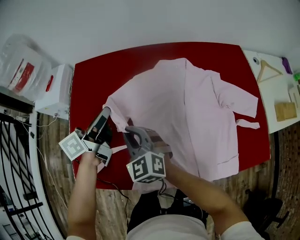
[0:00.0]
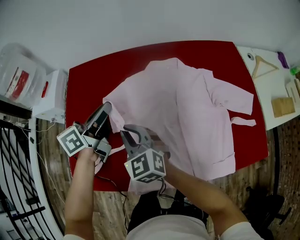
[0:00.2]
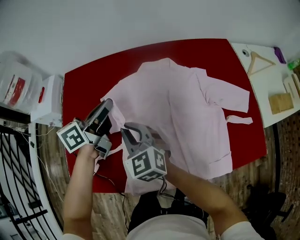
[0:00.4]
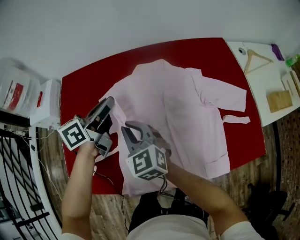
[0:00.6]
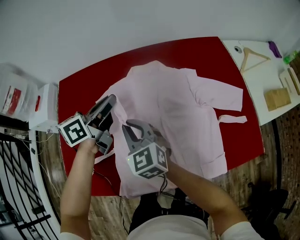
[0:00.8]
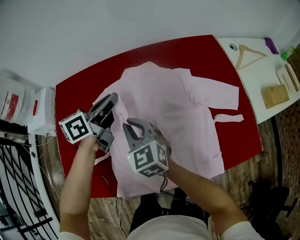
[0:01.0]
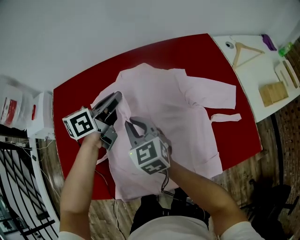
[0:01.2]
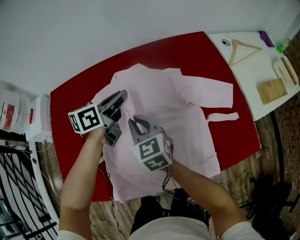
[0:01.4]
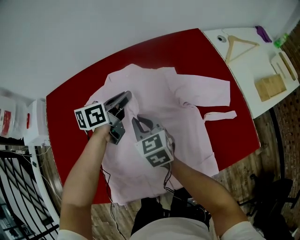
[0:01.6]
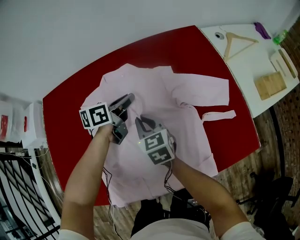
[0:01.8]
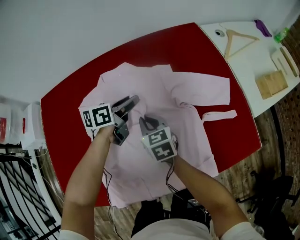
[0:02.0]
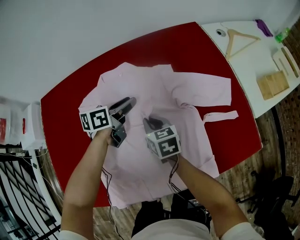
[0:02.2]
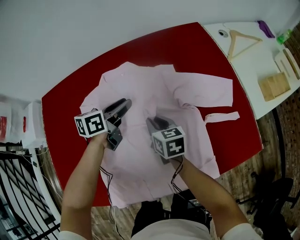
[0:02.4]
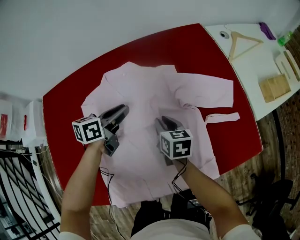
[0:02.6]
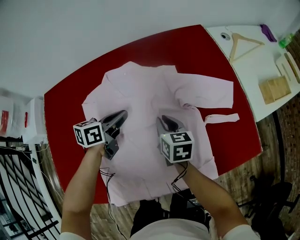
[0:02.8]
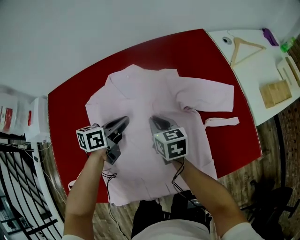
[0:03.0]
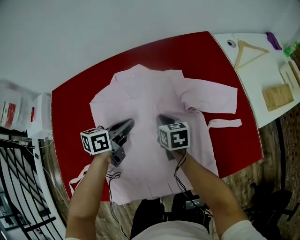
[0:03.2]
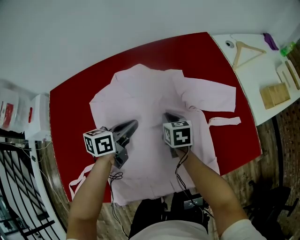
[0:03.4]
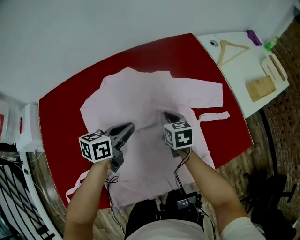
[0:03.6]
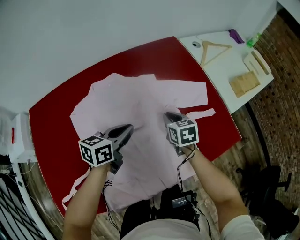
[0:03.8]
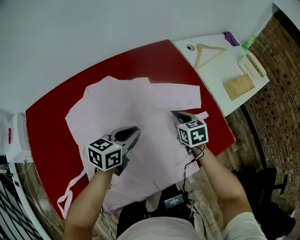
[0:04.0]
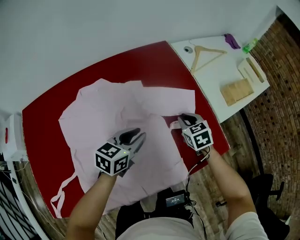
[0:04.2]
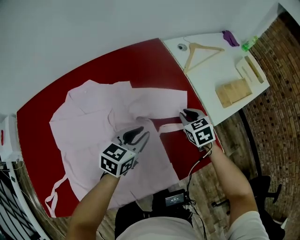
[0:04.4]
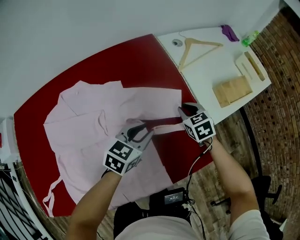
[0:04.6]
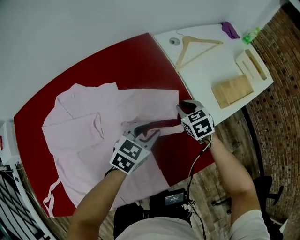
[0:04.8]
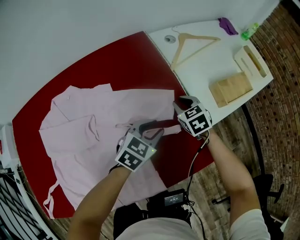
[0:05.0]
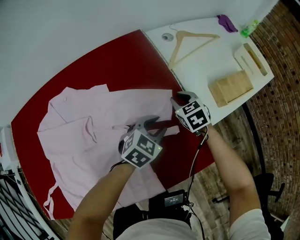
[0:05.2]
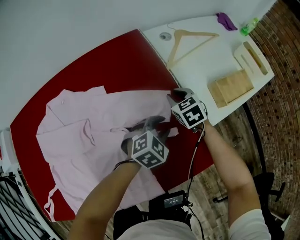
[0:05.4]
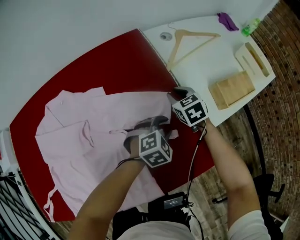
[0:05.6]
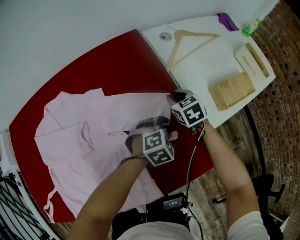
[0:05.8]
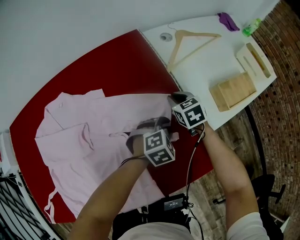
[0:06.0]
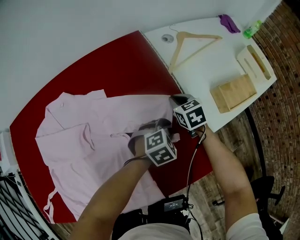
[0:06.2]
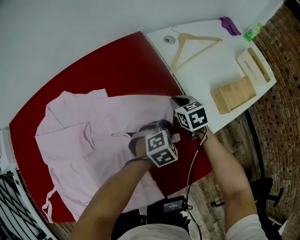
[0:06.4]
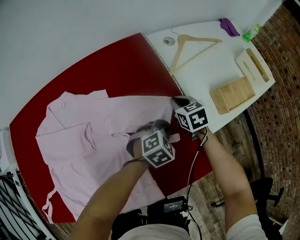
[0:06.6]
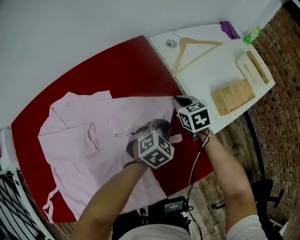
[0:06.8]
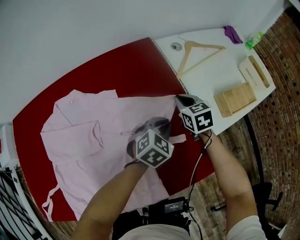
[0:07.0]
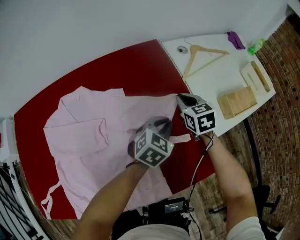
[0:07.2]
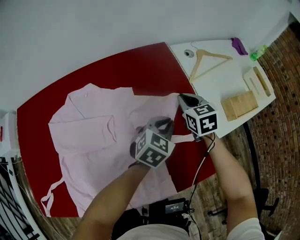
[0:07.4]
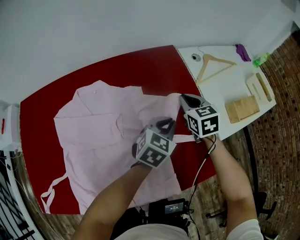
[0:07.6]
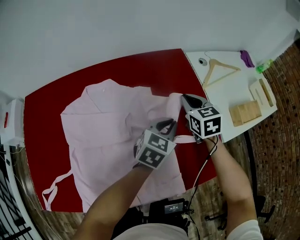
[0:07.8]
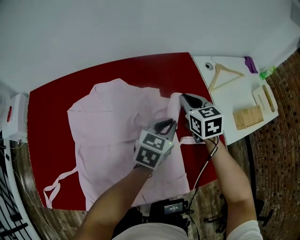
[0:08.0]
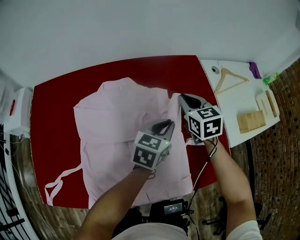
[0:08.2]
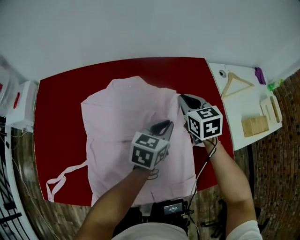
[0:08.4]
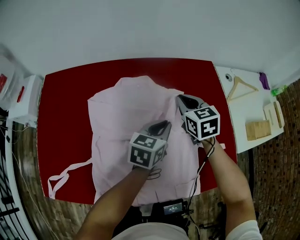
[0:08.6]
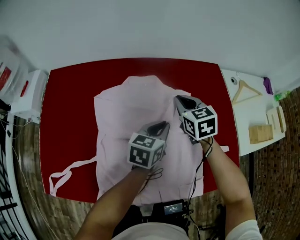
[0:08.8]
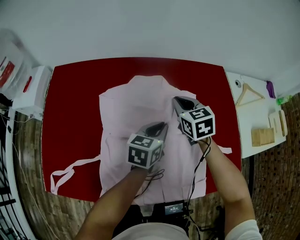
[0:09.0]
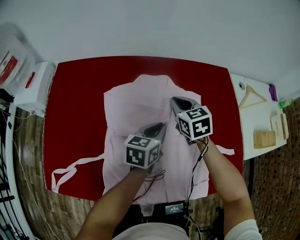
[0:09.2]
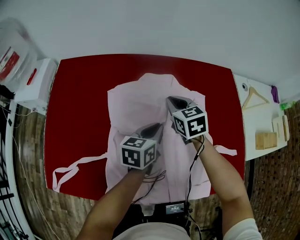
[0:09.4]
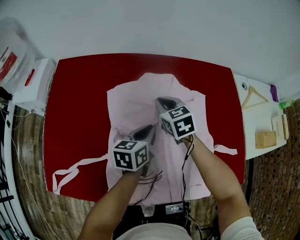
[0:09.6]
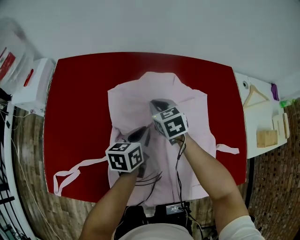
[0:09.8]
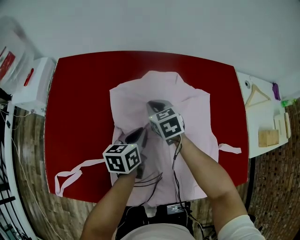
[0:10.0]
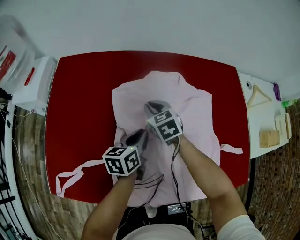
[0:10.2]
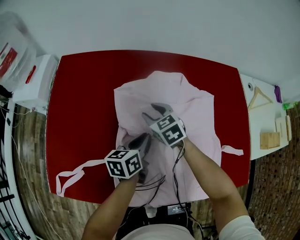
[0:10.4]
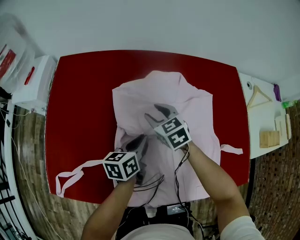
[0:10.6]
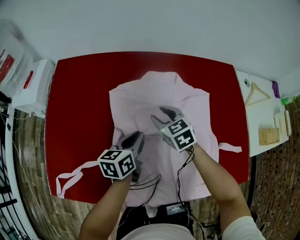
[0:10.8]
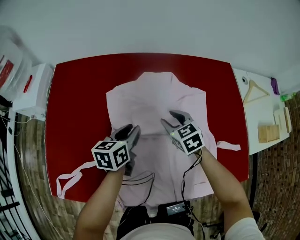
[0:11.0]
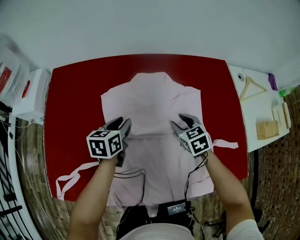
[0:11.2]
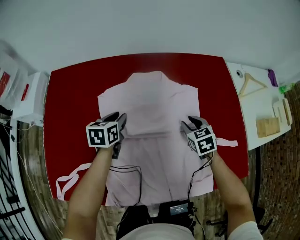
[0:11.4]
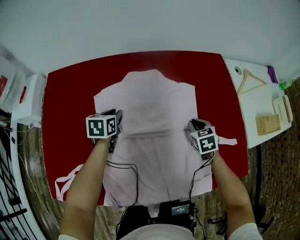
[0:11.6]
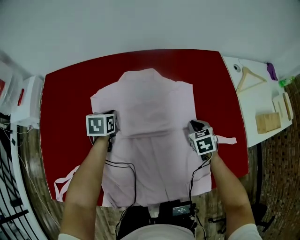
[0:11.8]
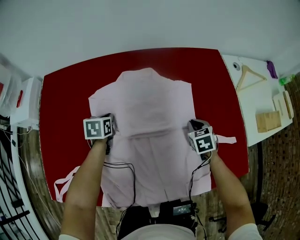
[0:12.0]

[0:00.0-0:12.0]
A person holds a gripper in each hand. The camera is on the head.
0:00.0 to 0:01.6: The grippers both shift to the right and forward by approximately 30 cm. The left gripper turns by about 30 degrees. Meanwhile the right gripper changes its angle by approximately 30 degrees.
0:01.6 to 0:03.0: The left gripper heads backward and downward, covering approximately 10 cm, and opens, then closes again. Meanwhile the right gripper shifts approximately 10 cm downward and to the right.
0:03.0 to 0:04.4: The two grippers go roughly 25 cm to the right. The right gripper turns by some 30 degrees. Meanwhile the left gripper turns by about 30 degrees.
0:04.4 to 0:06.0: The right gripper moves forward, roughly 10 cm. Meanwhile the left gripper goes approximately 25 cm to the right, forward and downward, and rotates around the line of its fingers by about 40 degrees, clockwise from behind.
0:06.0 to 0:07.6: The right gripper goes about 15 cm upward and to the left. The left gripper goes about 20 cm to the left and upward, turns by about 40 degrees, and closes.
0:07.6 to 0:09.0: The grippers both shift to the left by about 25 cm. The left gripper changes its angle by some 40 degrees.
0:09.0 to 0:10.4: Both grippers move to the left and downward, about 20 cm. The right gripper opens its fingers, while the left gripper swivels some 20 degrees.
0:10.4 to 0:12.0: The right gripper moves to the right, some 30 cm, rotates about 30 degrees, and closes up; the left gripper is displaced forward, downward and to the left by approximately 15 cm, and turns by some 40 degrees.

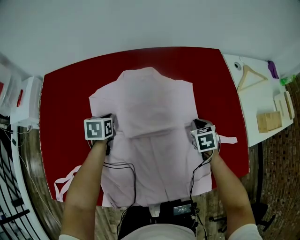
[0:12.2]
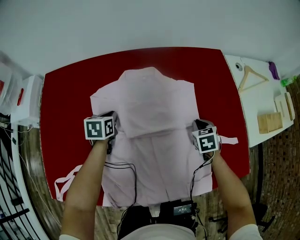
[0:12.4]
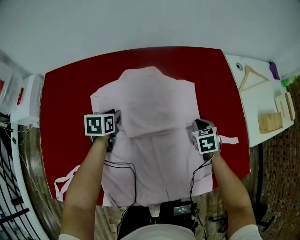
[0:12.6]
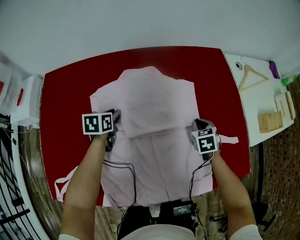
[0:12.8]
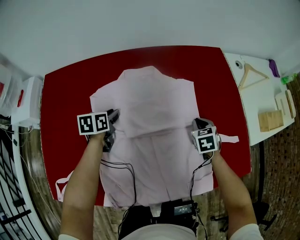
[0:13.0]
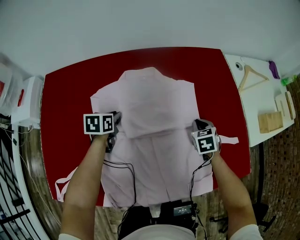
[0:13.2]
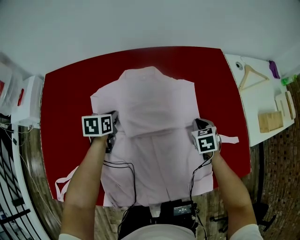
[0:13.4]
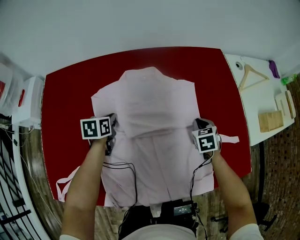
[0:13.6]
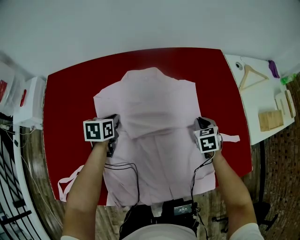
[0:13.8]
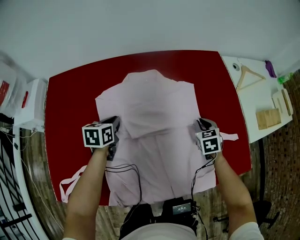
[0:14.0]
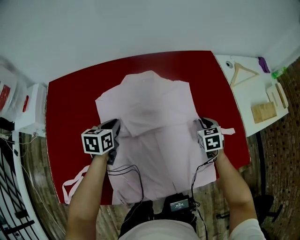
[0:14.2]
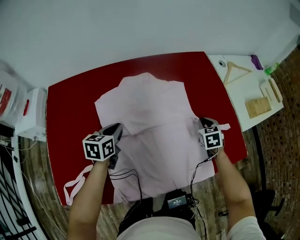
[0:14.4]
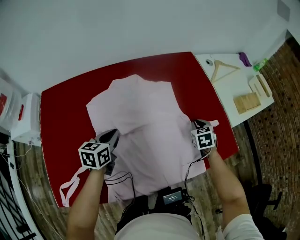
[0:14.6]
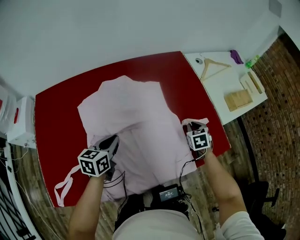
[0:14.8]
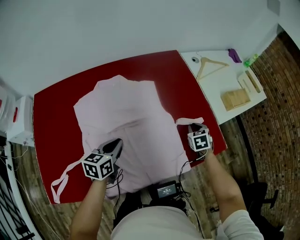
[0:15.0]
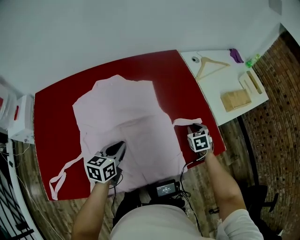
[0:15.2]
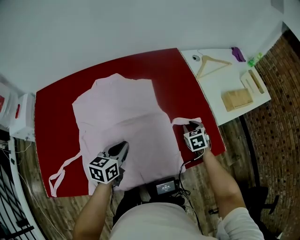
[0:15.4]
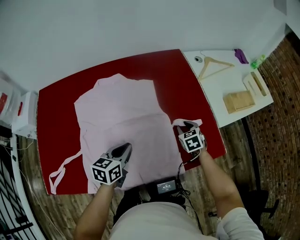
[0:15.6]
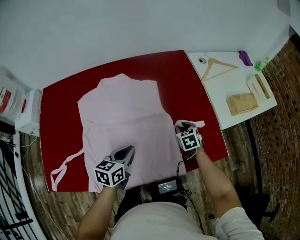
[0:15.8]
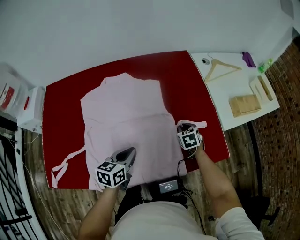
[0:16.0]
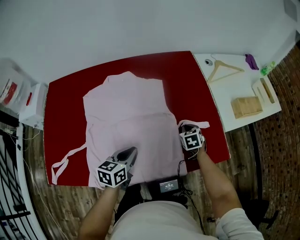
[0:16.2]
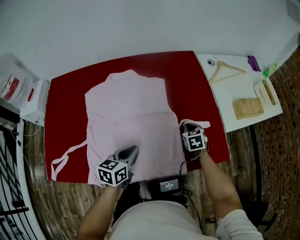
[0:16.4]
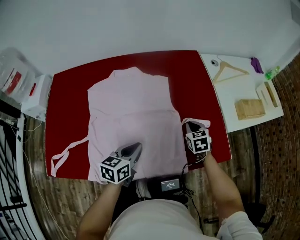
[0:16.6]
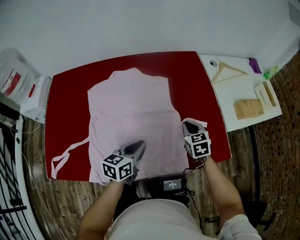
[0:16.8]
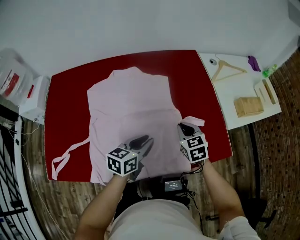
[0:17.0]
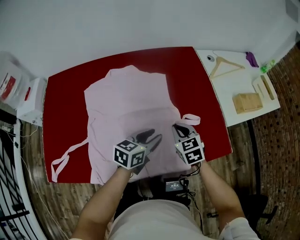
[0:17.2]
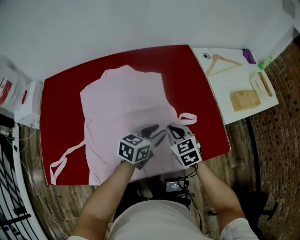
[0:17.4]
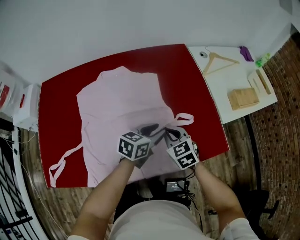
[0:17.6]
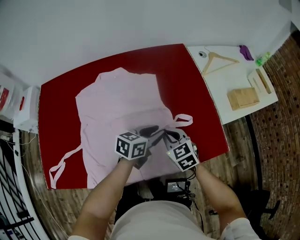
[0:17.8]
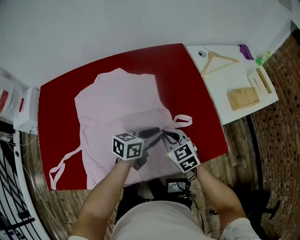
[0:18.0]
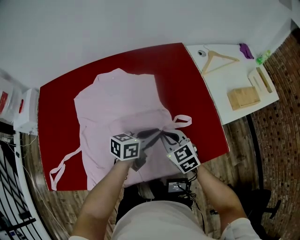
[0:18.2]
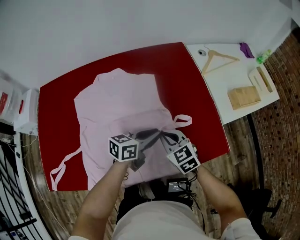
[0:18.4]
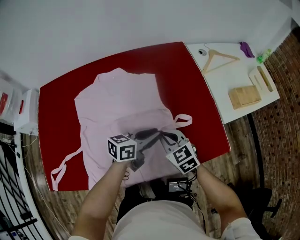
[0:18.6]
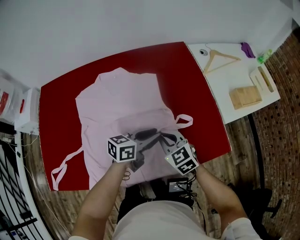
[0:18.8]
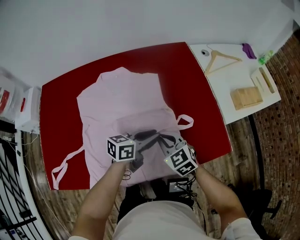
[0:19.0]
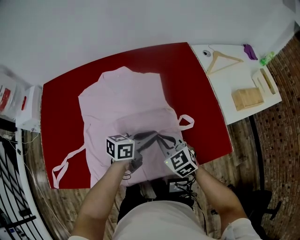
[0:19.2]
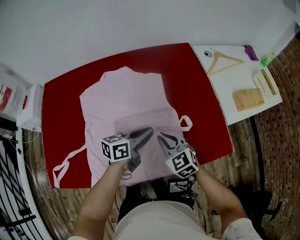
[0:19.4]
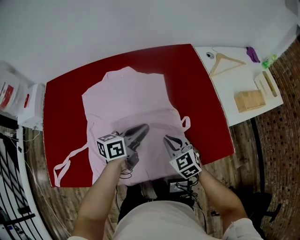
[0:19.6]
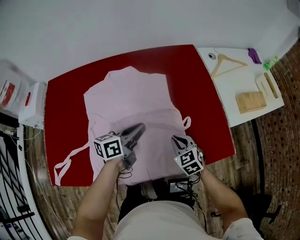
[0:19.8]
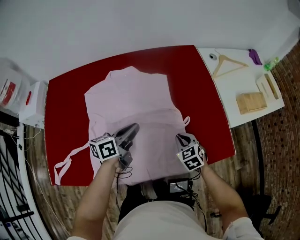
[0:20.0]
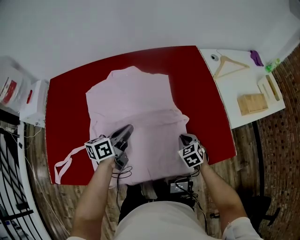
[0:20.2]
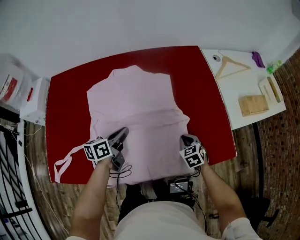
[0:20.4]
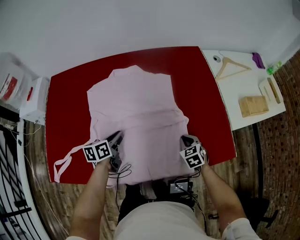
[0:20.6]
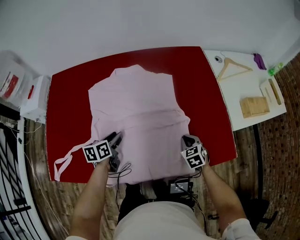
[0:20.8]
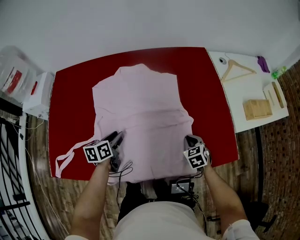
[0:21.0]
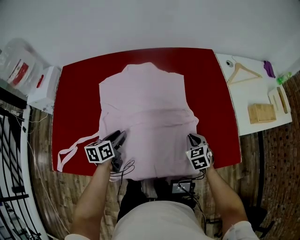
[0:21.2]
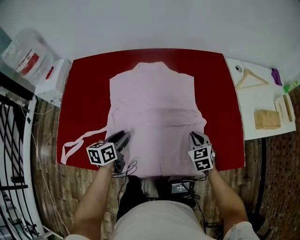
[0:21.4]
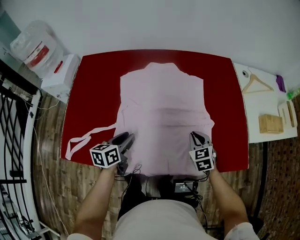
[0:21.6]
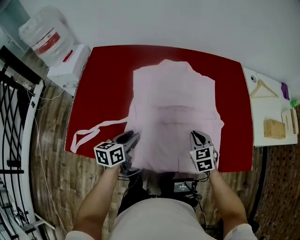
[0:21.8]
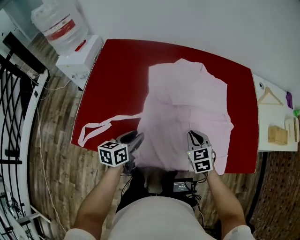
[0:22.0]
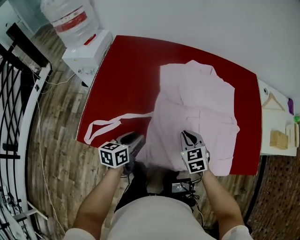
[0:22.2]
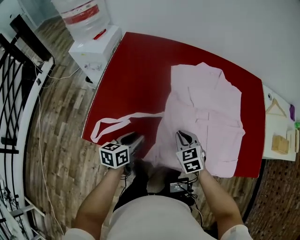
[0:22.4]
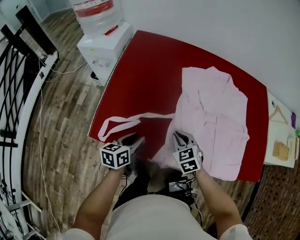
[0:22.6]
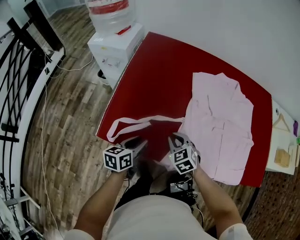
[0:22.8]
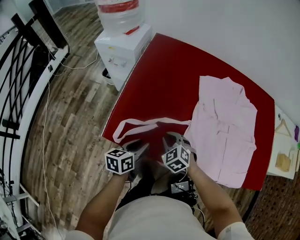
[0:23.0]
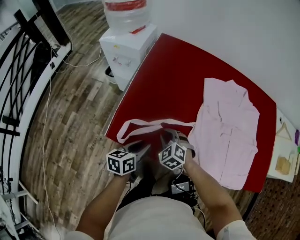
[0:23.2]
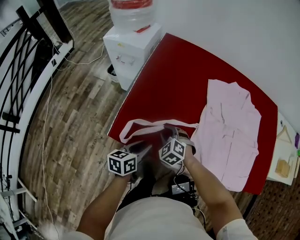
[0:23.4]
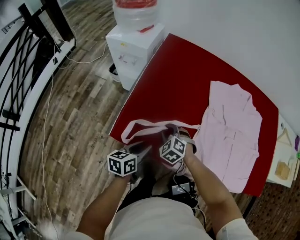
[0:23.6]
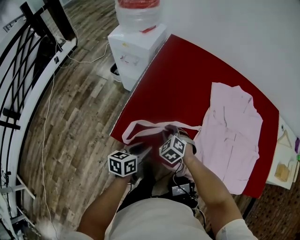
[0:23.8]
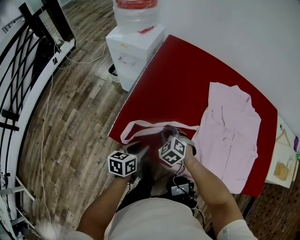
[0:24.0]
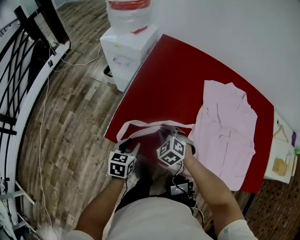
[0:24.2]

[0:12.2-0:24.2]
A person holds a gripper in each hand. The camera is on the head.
0:12.2 to 0:13.8: There are only small adjustments of the grippers.
0:13.8 to 0:15.2: The left gripper shifts roughly 25 cm to the right, upward and backward, and changes its angle by roughly 20 degrees. Meanwhile the right gripper goes approximately 20 cm to the right.
0:15.2 to 0:16.6: The right gripper shifts some 5 cm to the left; the left gripper goes roughly 5 cm to the right.
0:16.6 to 0:18.2: The left gripper heads to the right and forward, covering roughly 15 cm, turns by roughly 30 degrees, and opens, then closes once more. The right gripper shifts about 15 cm to the left, backward and upward, and turns by some 20 degrees.
0:18.2 to 0:19.8: The right gripper goes some 5 cm downward. Meanwhile the left gripper is displaced to the left by about 10 cm.
0:19.8 to 0:21.2: The left gripper heads to the left, downward and backward, covering about 20 cm, turns by roughly 30 degrees, and opens up.
0:21.2 to 0:22.6: The right gripper heads to the left, covering roughly 40 cm, and swivels about 30 degrees. The left gripper heads to the left and backward, covering roughly 25 cm.
0:22.6 to 0:24.2: The two grippers go roughly 15 cm to the left. The left gripper rotates about 20 degrees. Meanwhile the right gripper turns by roughly 30 degrees.
